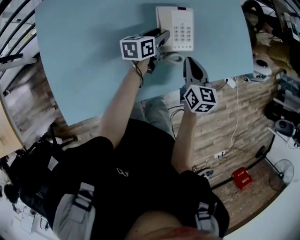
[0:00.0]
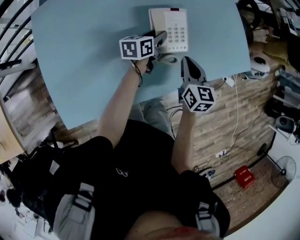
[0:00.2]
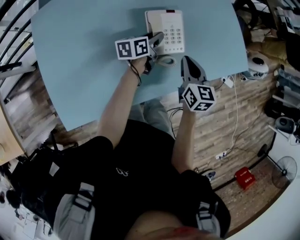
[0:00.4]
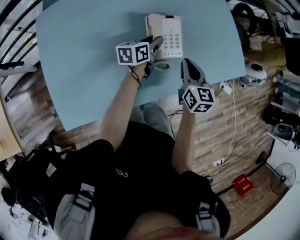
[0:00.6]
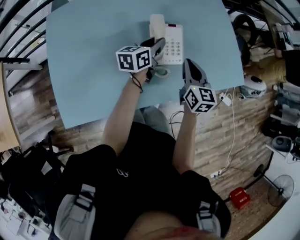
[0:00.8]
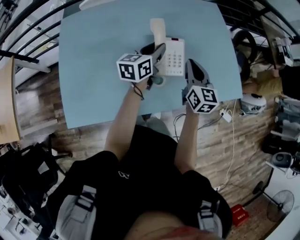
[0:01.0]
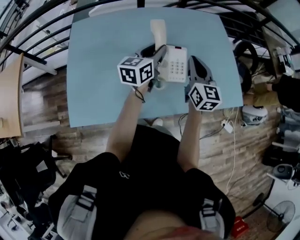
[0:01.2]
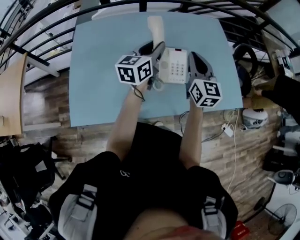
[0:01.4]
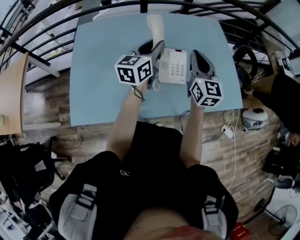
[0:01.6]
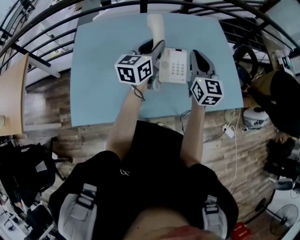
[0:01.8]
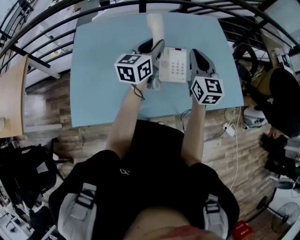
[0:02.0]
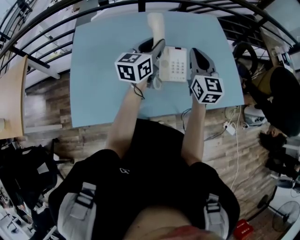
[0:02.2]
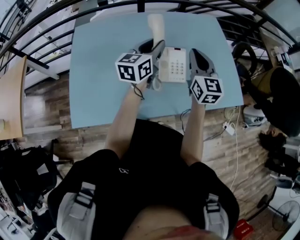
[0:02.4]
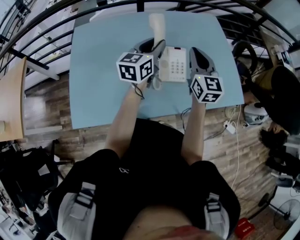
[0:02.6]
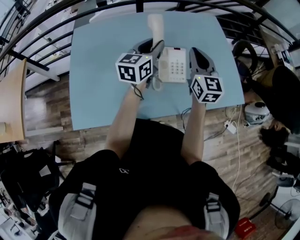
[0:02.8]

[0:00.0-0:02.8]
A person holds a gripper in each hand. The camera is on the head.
0:00.0 to 0:01.4: Both grippers move upward, approximately 25 cm. The left gripper swivels some 40 degrees, while the right gripper changes its angle by roughly 30 degrees.
0:01.4 to 0:02.8: The grippers make only small movements.

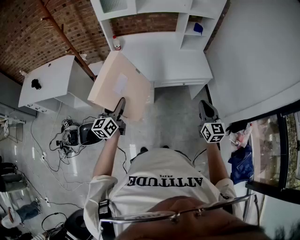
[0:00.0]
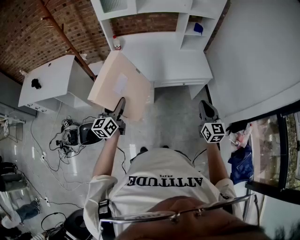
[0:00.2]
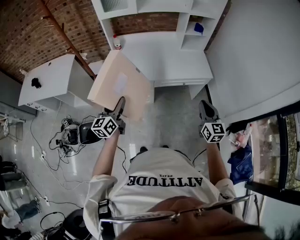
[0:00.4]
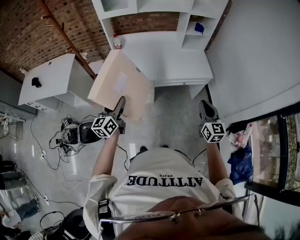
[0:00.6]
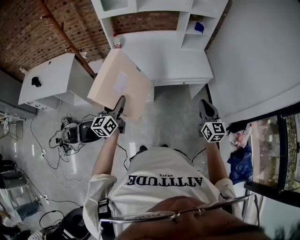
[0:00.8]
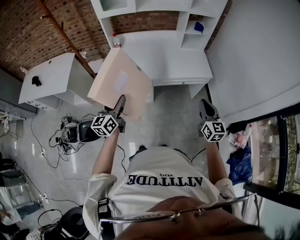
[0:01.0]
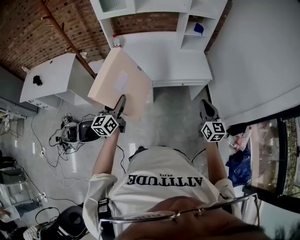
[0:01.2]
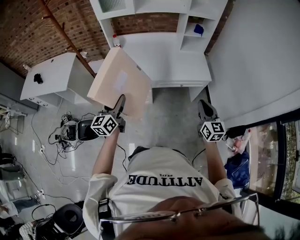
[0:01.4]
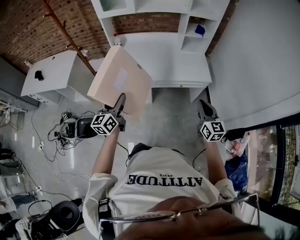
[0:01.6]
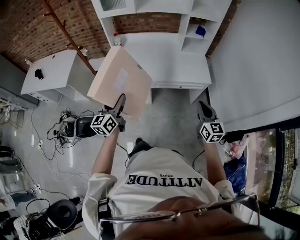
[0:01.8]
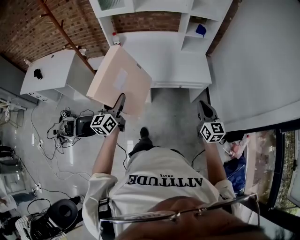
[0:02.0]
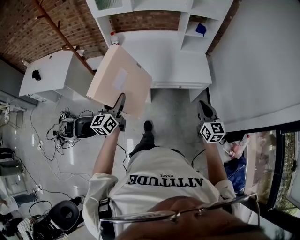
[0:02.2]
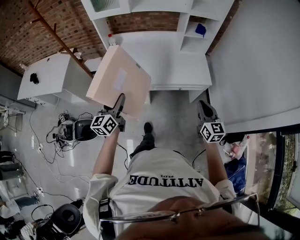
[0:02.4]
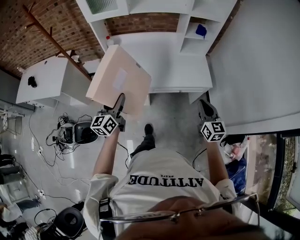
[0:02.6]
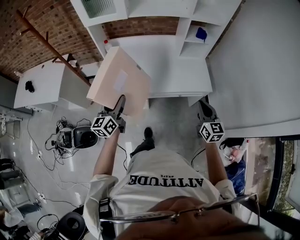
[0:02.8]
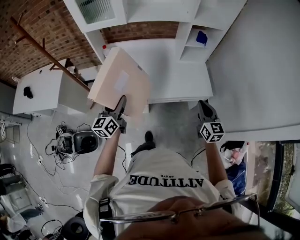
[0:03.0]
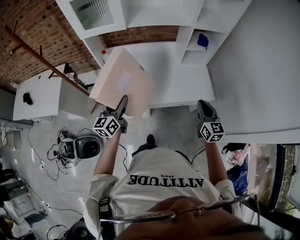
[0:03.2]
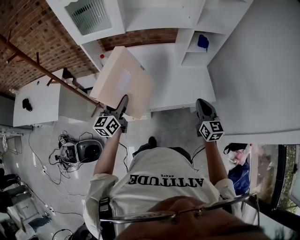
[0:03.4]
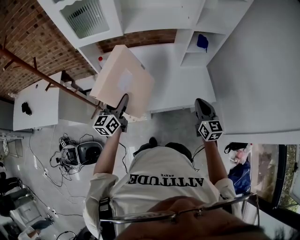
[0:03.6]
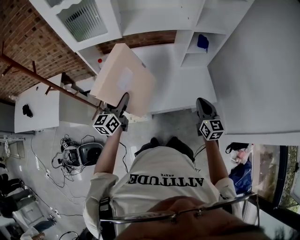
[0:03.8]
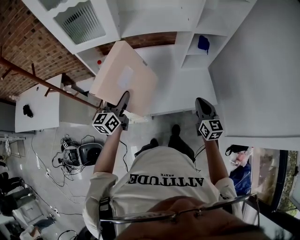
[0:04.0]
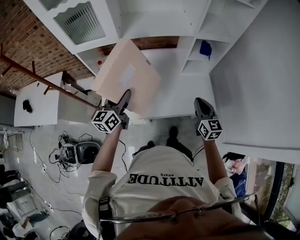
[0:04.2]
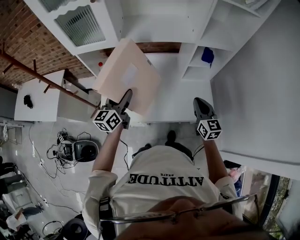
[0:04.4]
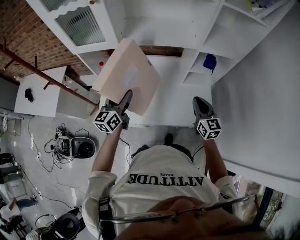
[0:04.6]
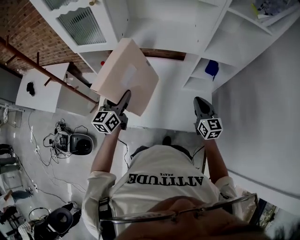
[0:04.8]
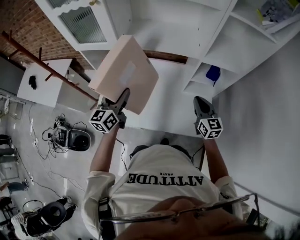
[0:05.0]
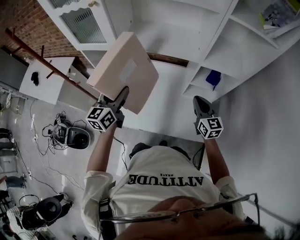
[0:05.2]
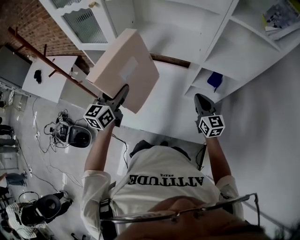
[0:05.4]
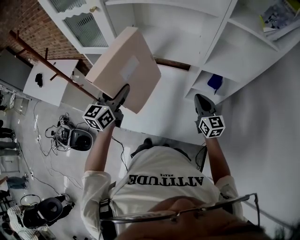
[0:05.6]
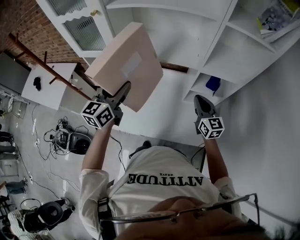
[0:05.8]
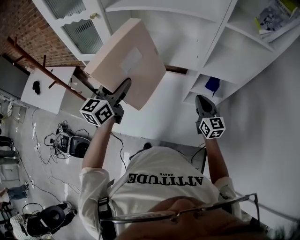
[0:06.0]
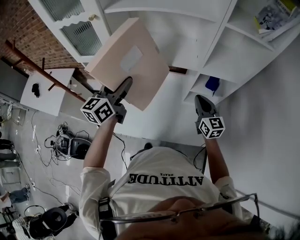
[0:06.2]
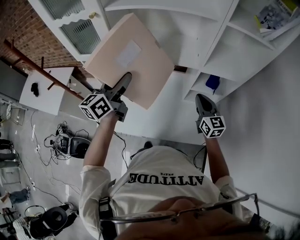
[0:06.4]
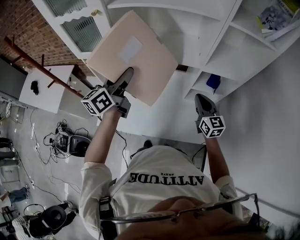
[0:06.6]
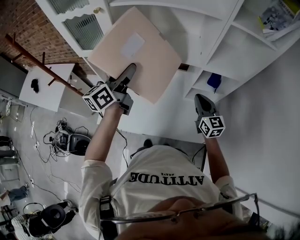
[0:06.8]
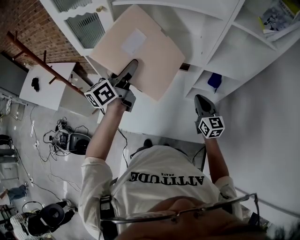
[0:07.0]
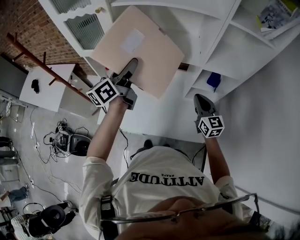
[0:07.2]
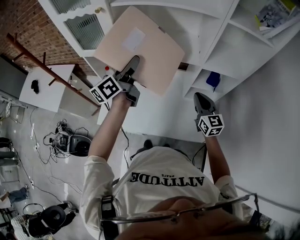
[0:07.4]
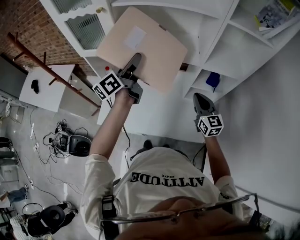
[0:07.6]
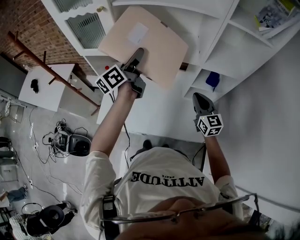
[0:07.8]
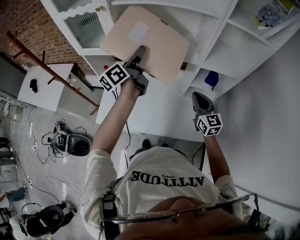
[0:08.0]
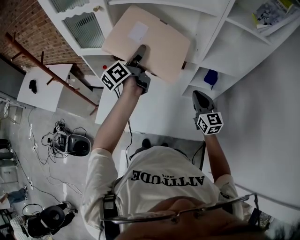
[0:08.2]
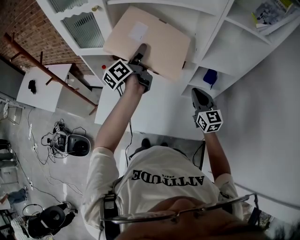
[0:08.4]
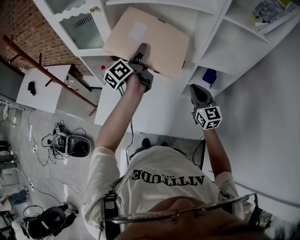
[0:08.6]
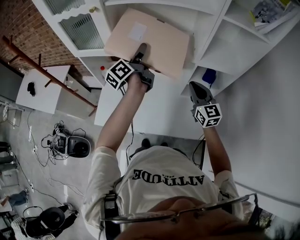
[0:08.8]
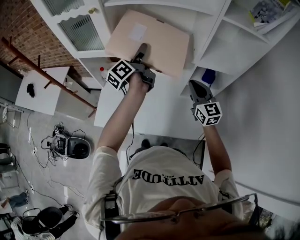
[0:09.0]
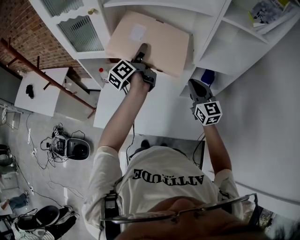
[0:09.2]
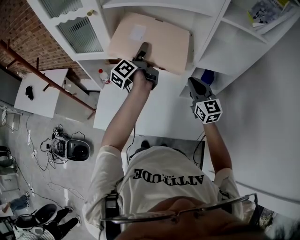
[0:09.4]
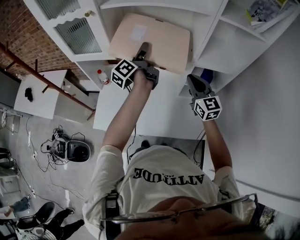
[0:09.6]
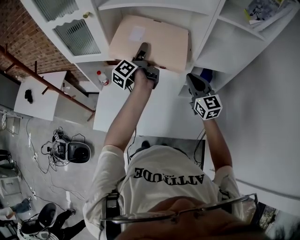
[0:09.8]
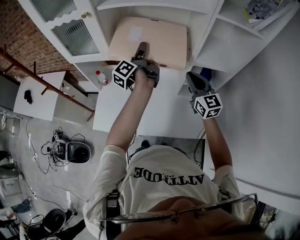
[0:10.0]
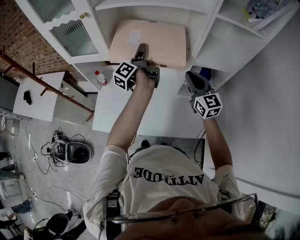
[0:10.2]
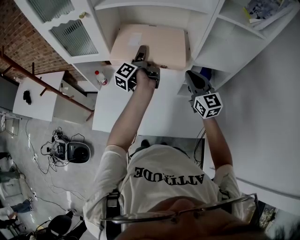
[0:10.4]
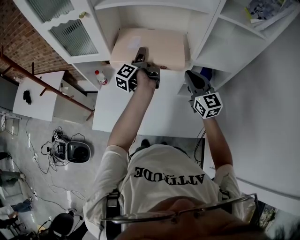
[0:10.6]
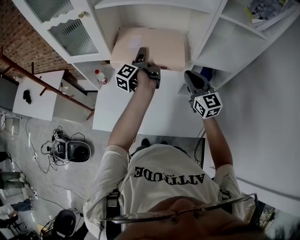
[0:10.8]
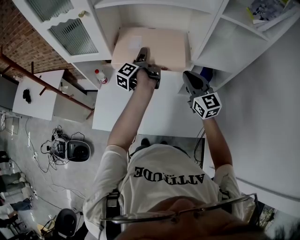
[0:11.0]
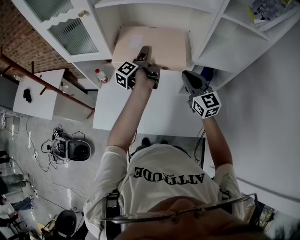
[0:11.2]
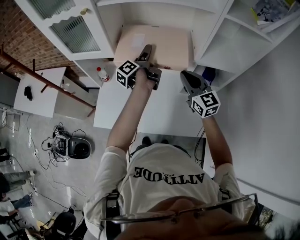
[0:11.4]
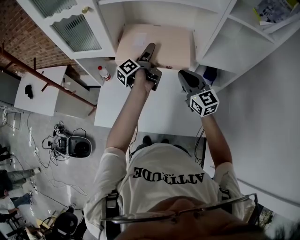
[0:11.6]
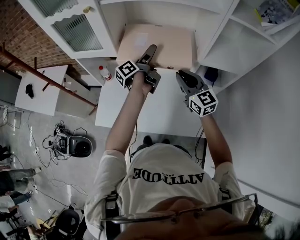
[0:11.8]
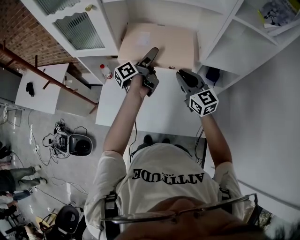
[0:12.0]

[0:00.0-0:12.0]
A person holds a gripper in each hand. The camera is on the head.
0:00.0 to 0:01.6: Both grippers move to the right, about 5 cm.
0:01.6 to 0:03.0: Both grippers move forward, some 20 cm.
0:03.0 to 0:04.4: Both grippers move forward, about 20 cm.
0:04.4 to 0:06.0: The right gripper is displaced forward by roughly 15 cm; the left gripper heads upward and forward, covering approximately 15 cm.
0:06.0 to 0:07.6: The left gripper is displaced forward by some 5 cm, and rotates some 40 degrees.
0:07.6 to 0:09.0: The right gripper changes place by roughly 5 cm; the left gripper goes roughly 5 cm forward.
0:09.0 to 0:10.4: The left gripper travels downward by roughly 5 cm, and swivels roughly 20 degrees.
0:10.4 to 0:12.0: The left gripper rotates about 20 degrees, and opens, while the right gripper moves to the left, approximately 5 cm.

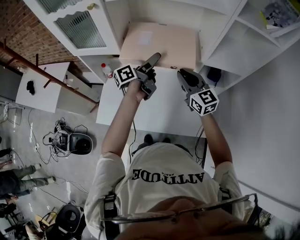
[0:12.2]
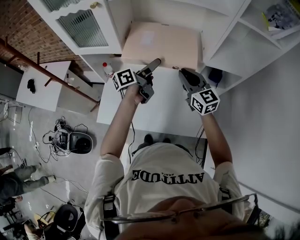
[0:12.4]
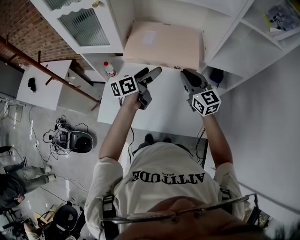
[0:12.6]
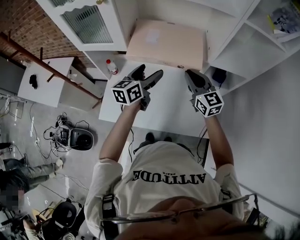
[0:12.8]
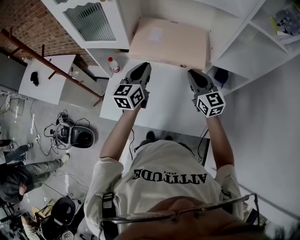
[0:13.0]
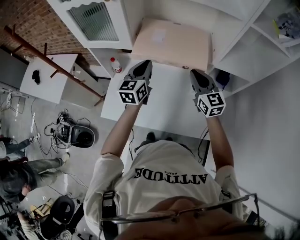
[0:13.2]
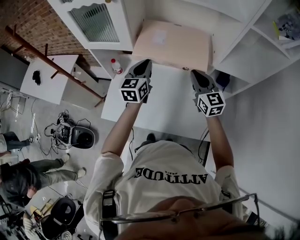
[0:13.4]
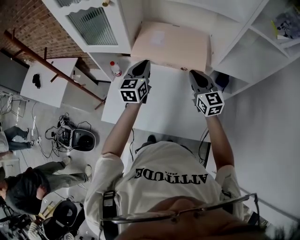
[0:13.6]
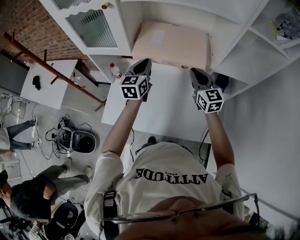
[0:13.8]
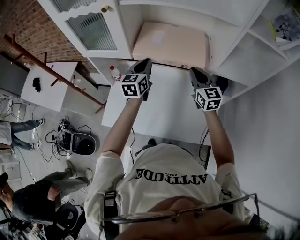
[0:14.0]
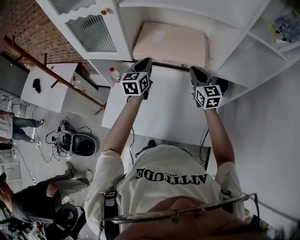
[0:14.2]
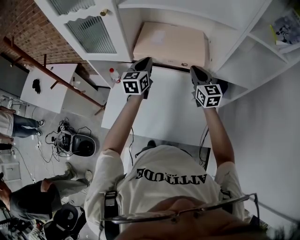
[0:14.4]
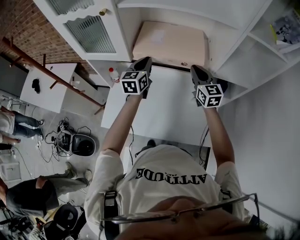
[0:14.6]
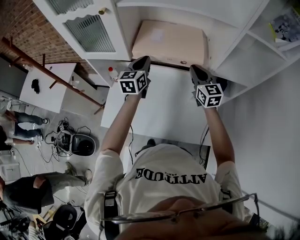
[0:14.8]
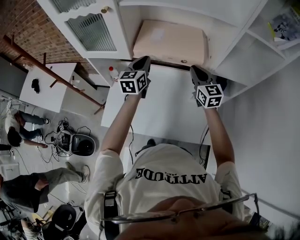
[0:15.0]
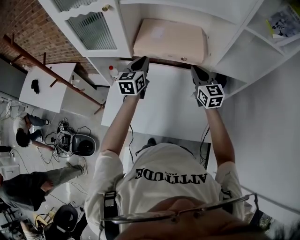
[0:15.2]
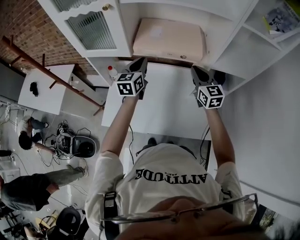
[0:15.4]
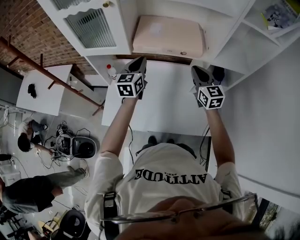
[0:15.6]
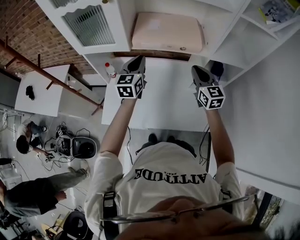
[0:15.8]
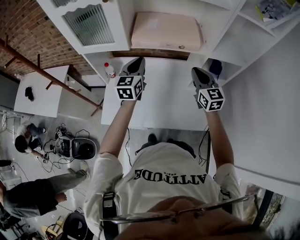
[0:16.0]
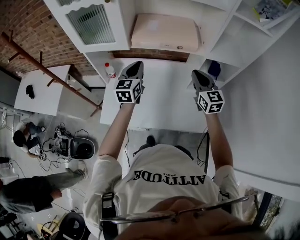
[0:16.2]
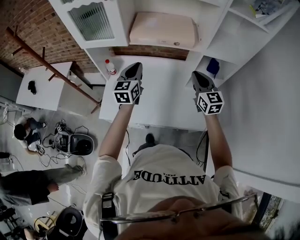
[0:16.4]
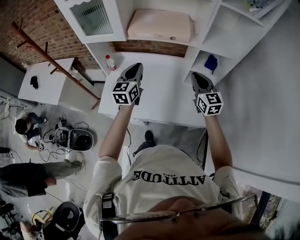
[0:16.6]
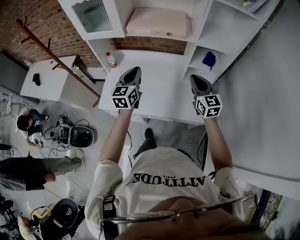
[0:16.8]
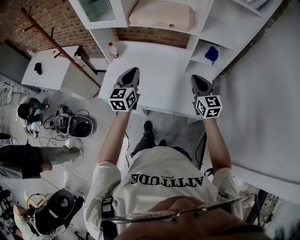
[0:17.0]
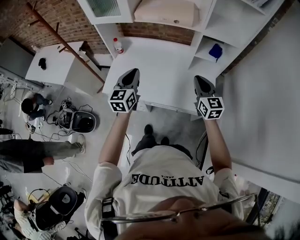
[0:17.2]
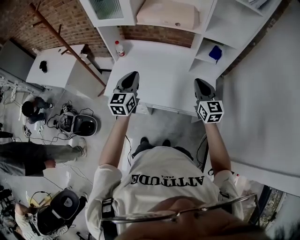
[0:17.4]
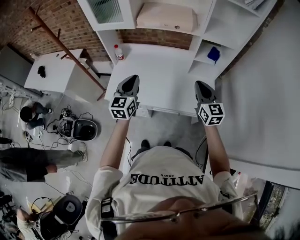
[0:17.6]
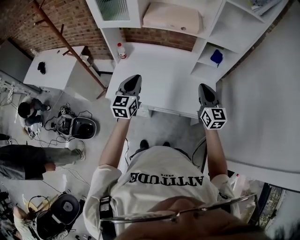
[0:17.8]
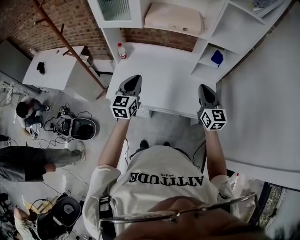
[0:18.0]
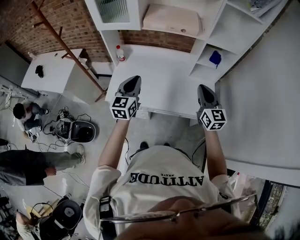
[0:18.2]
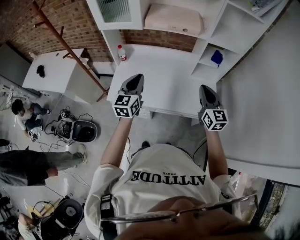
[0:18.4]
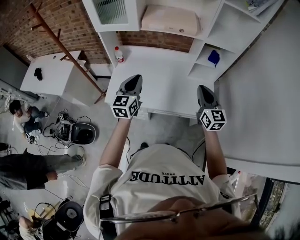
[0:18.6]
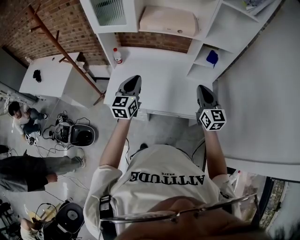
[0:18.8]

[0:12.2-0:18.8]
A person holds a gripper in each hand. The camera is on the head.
0:12.2 to 0:13.8: The left gripper is displaced to the left by roughly 10 cm, rolls clockwise, seen from behind, by about 60 degrees, and closes.
0:13.8 to 0:15.4: The grippers stay close to where they were, moving slightly.
0:15.4 to 0:17.2: The grippers both shift backward by some 25 cm.
0:17.2 to 0:18.8: The right gripper ends up about 5 cm from where it was.

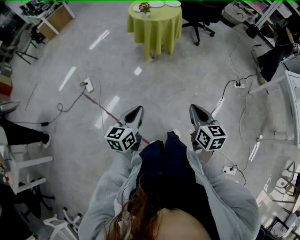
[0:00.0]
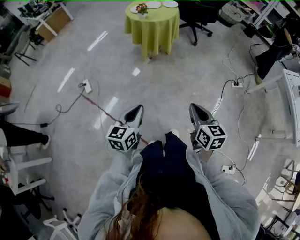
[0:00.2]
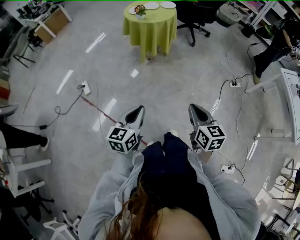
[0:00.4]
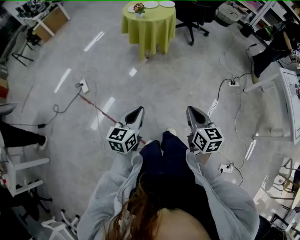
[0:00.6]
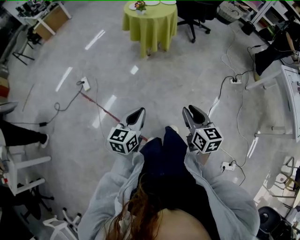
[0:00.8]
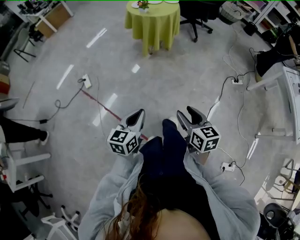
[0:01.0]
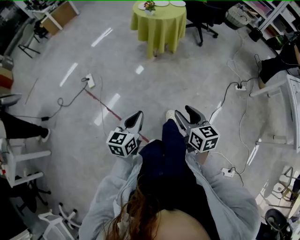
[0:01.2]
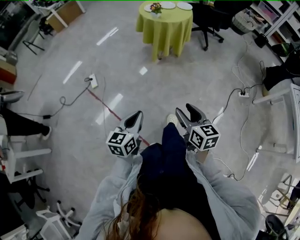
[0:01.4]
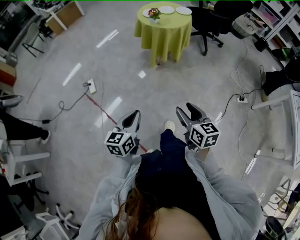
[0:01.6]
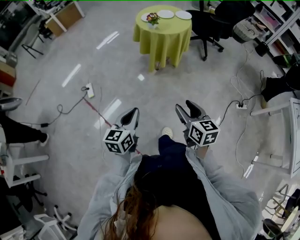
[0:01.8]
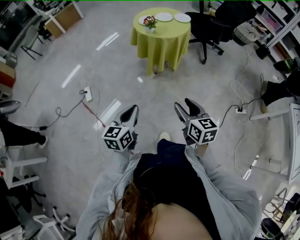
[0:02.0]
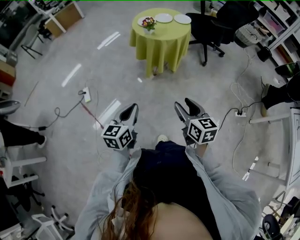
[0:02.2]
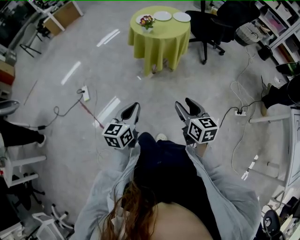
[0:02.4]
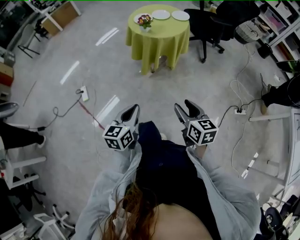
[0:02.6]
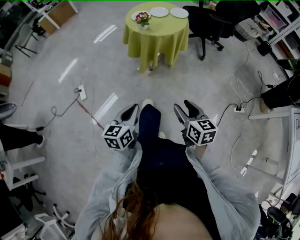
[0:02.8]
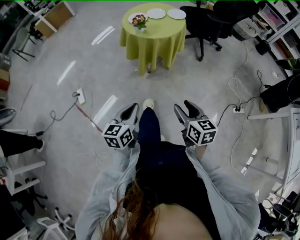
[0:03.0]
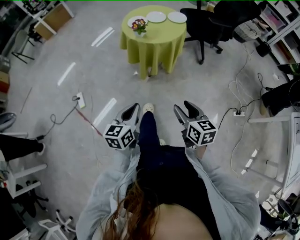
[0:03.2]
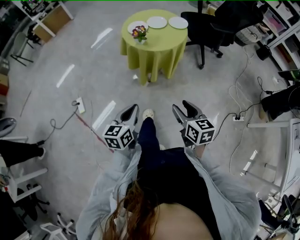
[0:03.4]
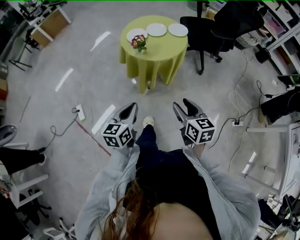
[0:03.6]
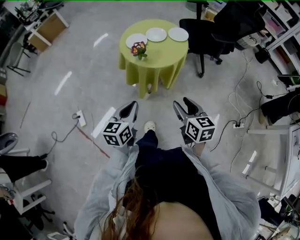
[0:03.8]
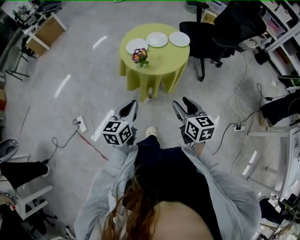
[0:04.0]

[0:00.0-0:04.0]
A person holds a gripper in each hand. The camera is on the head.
0:00.0 to 0:01.4: The right gripper heads to the left, covering some 5 cm, and opens up.
0:01.4 to 0:02.6: The two grippers go approximately 25 cm forward and to the right.
0:02.6 to 0:04.0: Both grippers move forward, approximately 30 cm.
